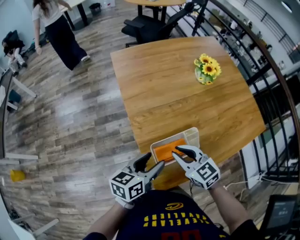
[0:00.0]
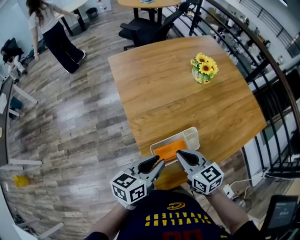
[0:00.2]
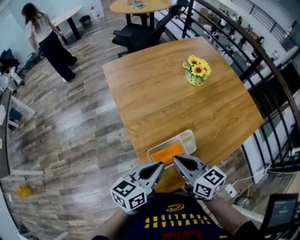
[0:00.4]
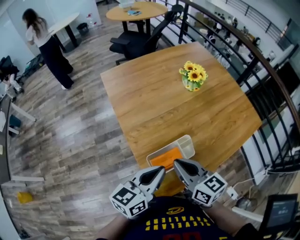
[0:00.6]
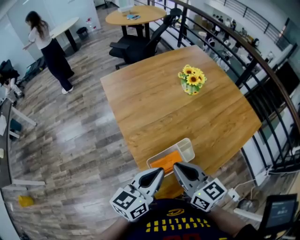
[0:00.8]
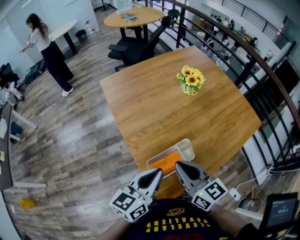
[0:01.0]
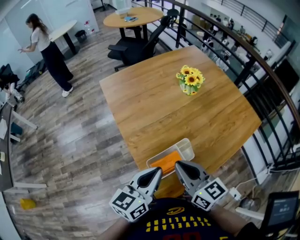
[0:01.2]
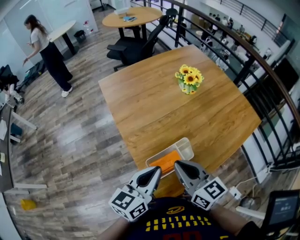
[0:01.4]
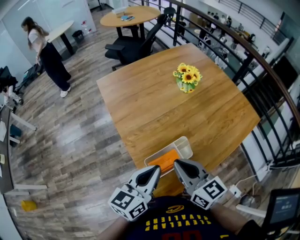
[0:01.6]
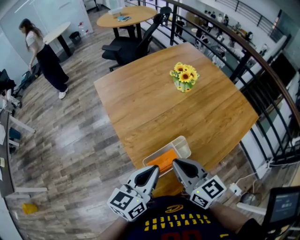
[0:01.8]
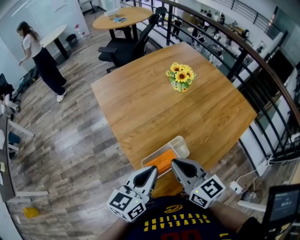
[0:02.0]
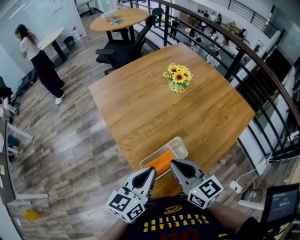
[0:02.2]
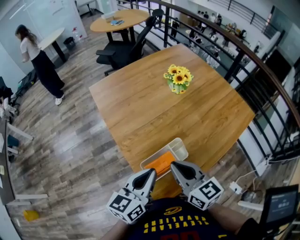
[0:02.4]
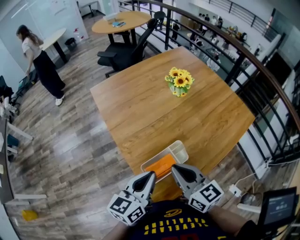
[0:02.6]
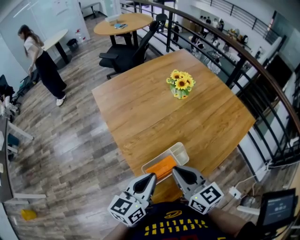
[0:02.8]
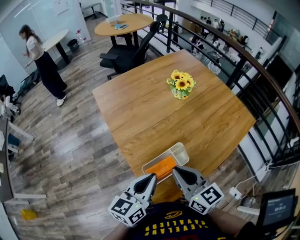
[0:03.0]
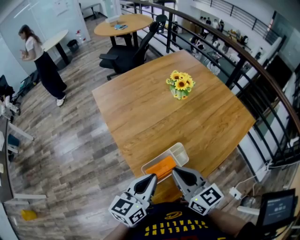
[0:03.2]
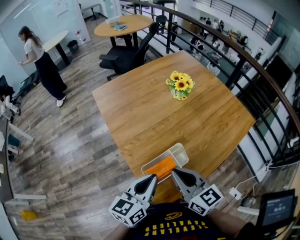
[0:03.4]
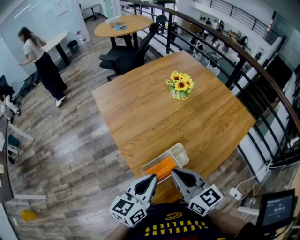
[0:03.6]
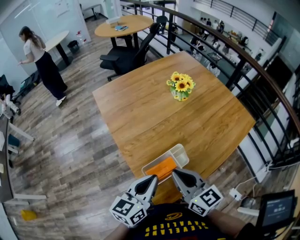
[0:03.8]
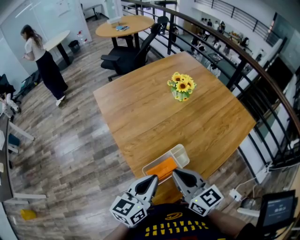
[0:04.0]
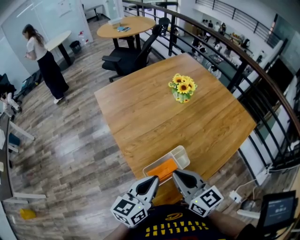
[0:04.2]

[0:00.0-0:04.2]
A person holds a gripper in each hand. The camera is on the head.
0.0 to 1.4 s: Both grippers move upward, approximately 10 cm. The right gripper swivels approximately 30 degrees. The left gripper closes its fingers.
1.4 to 2.8 s: There are only small adjustments of the grippers.
2.8 to 4.2 s: The two grippers keep their place.

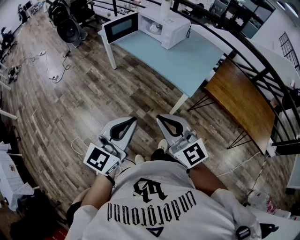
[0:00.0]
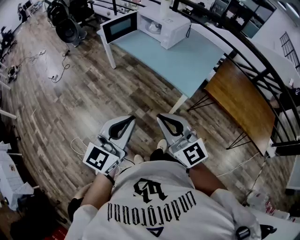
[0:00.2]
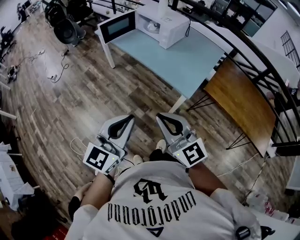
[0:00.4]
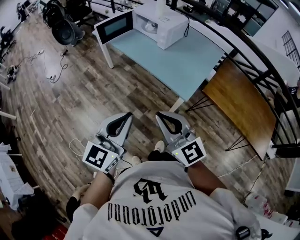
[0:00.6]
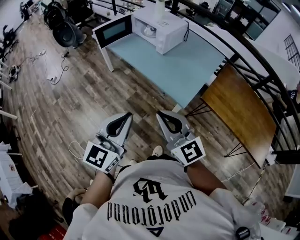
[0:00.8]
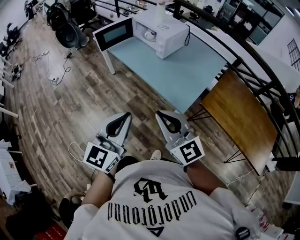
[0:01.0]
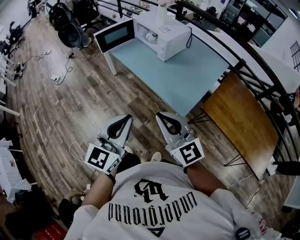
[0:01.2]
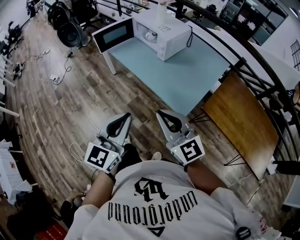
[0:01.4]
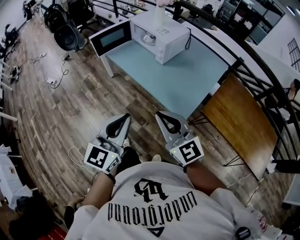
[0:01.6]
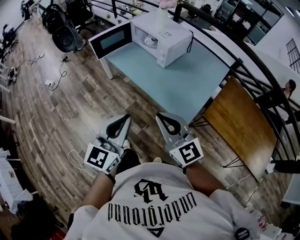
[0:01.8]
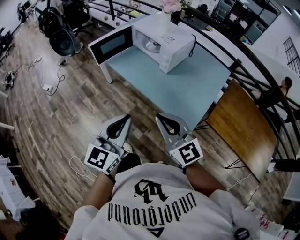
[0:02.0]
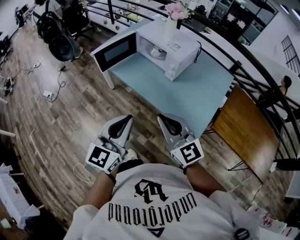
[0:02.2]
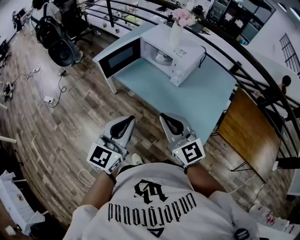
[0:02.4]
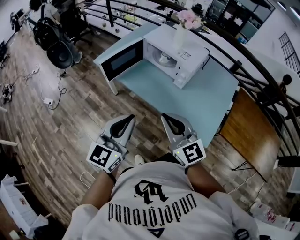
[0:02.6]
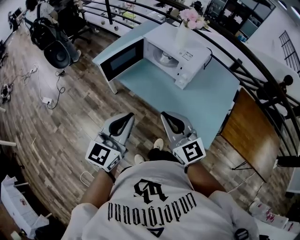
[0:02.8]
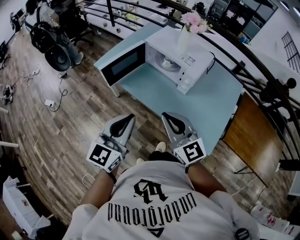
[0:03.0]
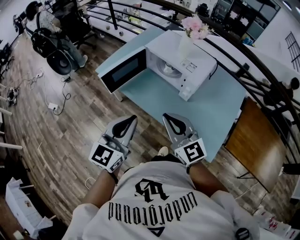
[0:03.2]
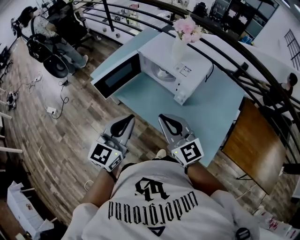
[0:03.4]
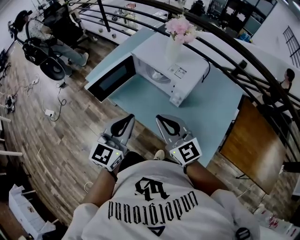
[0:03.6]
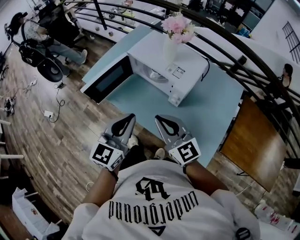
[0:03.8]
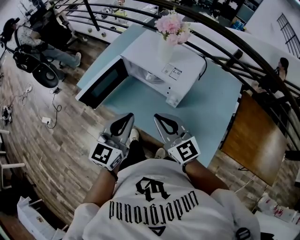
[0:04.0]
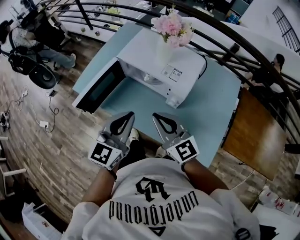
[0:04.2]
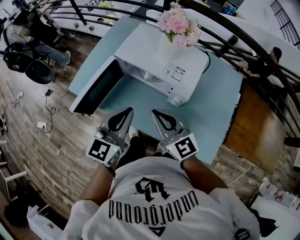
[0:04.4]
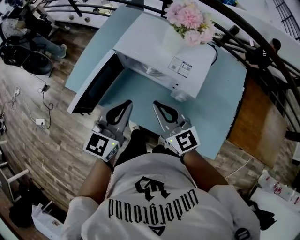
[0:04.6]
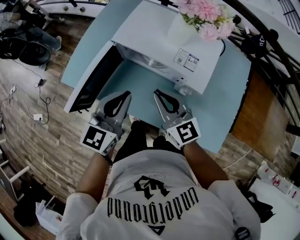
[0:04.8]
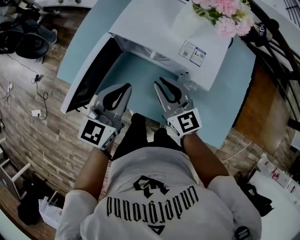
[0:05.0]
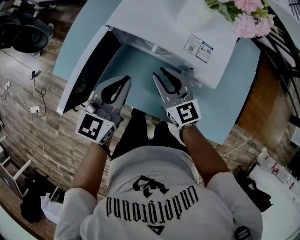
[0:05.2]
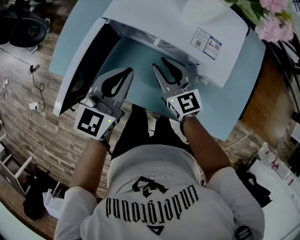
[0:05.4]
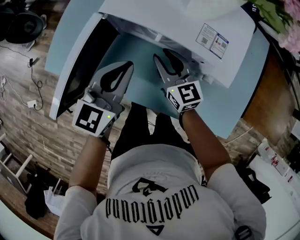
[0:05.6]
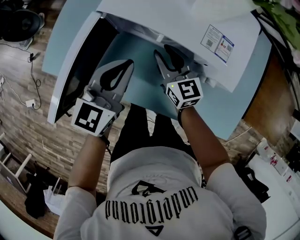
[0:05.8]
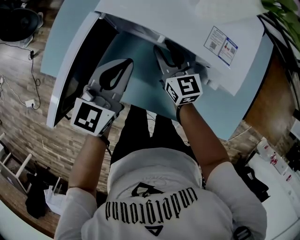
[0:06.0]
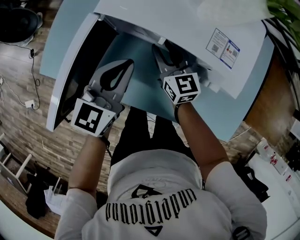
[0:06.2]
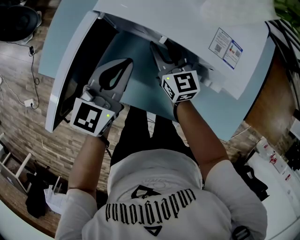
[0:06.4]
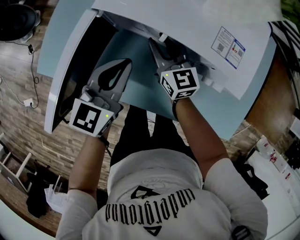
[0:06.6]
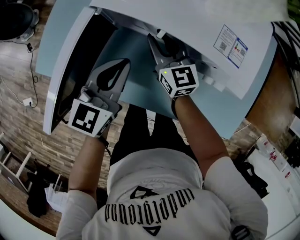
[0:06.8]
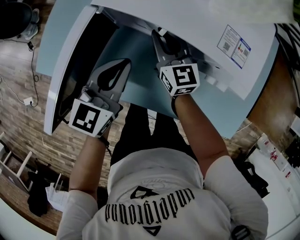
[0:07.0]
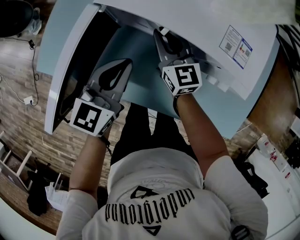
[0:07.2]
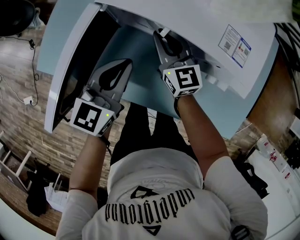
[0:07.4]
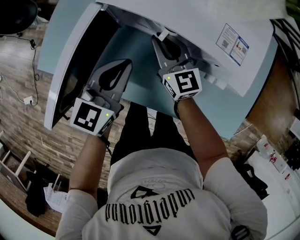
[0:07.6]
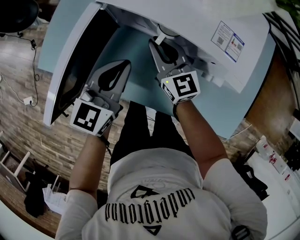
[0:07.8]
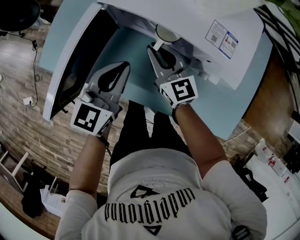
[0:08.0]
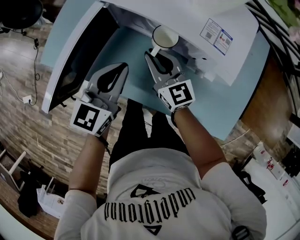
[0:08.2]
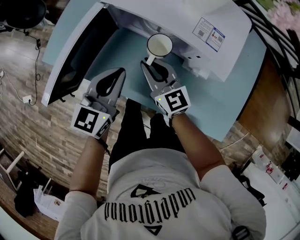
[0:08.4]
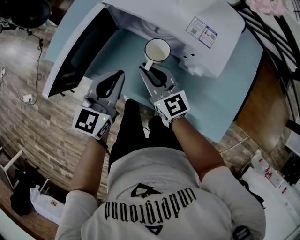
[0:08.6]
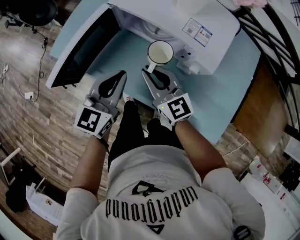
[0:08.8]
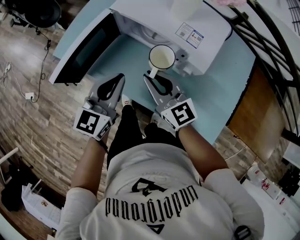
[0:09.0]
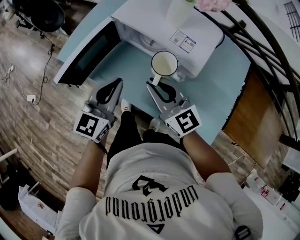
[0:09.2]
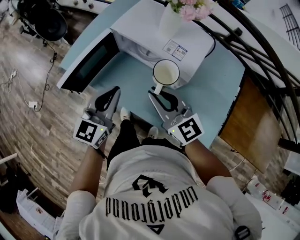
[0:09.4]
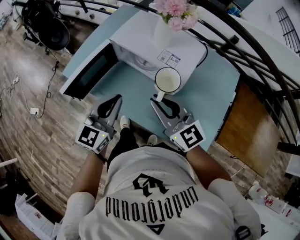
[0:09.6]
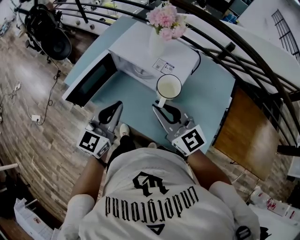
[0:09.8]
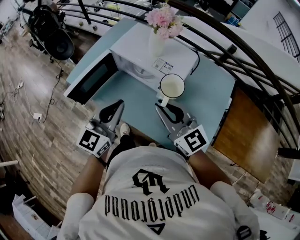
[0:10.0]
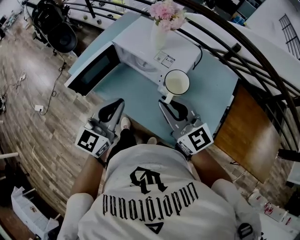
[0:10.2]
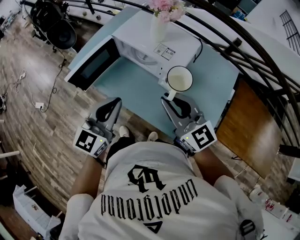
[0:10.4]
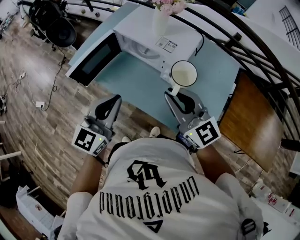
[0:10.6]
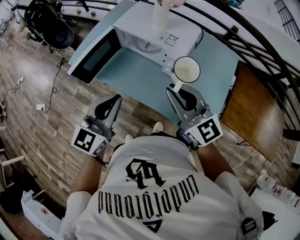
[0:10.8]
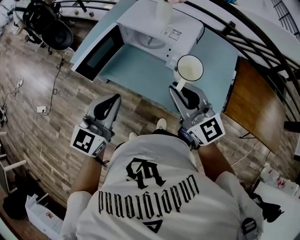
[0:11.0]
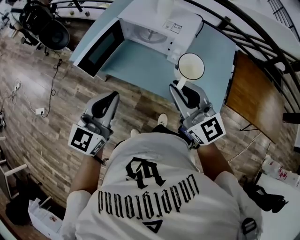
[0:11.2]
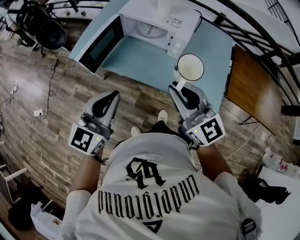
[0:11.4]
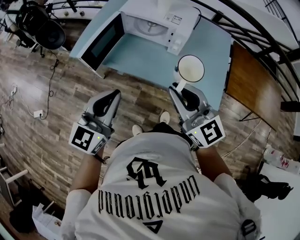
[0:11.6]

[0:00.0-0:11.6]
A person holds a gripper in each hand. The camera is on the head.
0.0 to 1.4 s: Both grippers move forward and to the right, roughly 20 cm.
1.4 to 2.8 s: Both grippers move forward and to the left, approximately 35 cm.
2.8 to 4.4 s: The grippers both shift forward by roughly 25 cm.
4.4 to 5.8 s: Both grippers travel together downward and forward, approximately 25 cm. The right gripper rotates about 20 degrees, and opens its fingers.
5.8 to 7.2 s: The left gripper heads downward, covering some 5 cm. The right gripper changes place by approximately 5 cm.
7.2 to 8.8 s: The right gripper is displaced backward and upward by roughly 20 cm. Meanwhile the left gripper goes about 15 cm backward and upward.
8.8 to 10.2 s: Both grippers travel together upward, backward and to the right, about 25 cm.
10.2 to 11.6 s: Both grippers travel together backward and to the left, some 25 cm.

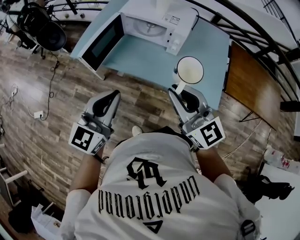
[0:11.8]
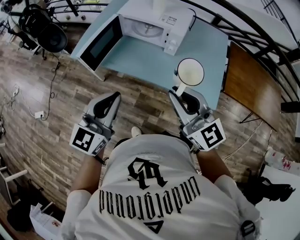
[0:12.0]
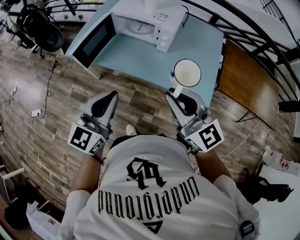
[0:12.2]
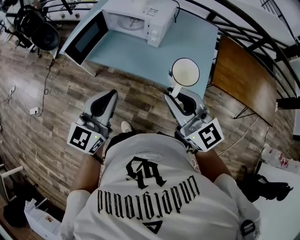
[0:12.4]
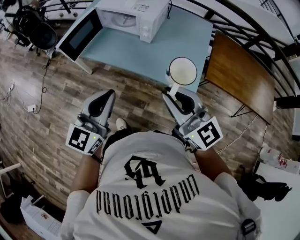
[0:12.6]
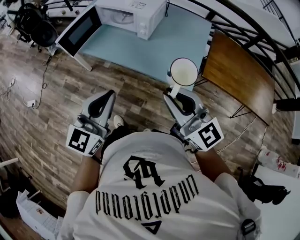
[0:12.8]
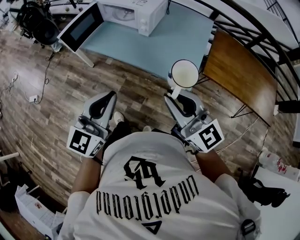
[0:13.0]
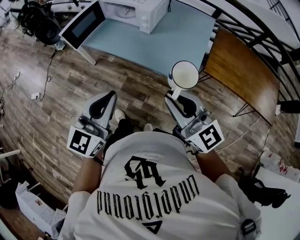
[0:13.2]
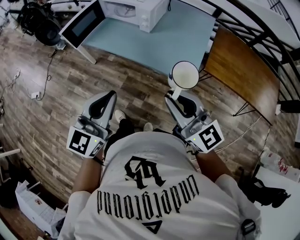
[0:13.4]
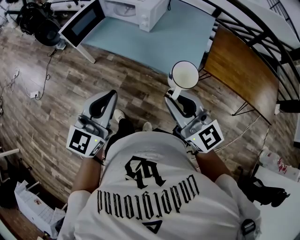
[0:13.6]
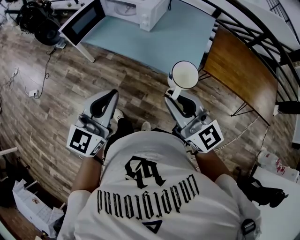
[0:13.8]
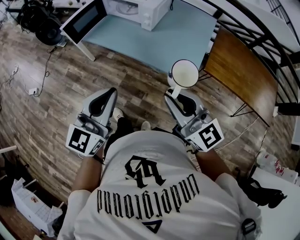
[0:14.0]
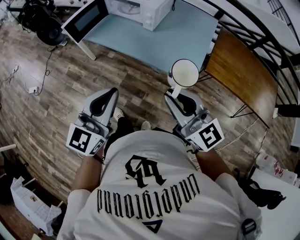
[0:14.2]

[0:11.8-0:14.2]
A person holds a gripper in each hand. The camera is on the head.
11.8 to 13.0 s: Both grippers travel together to the right and backward, approximately 25 cm.
13.0 to 14.2 s: The grippers stay close to where they were, moving slightly.

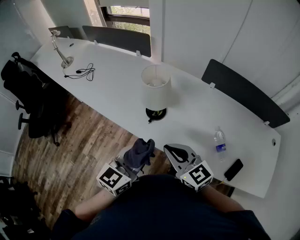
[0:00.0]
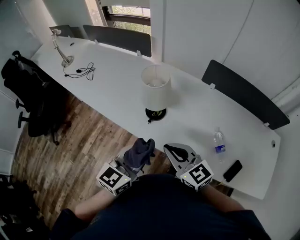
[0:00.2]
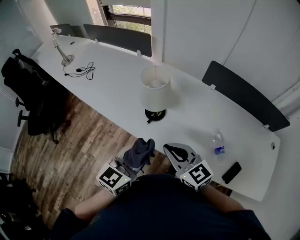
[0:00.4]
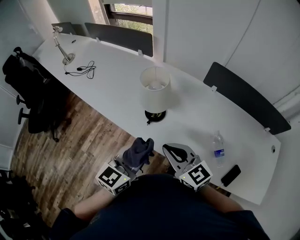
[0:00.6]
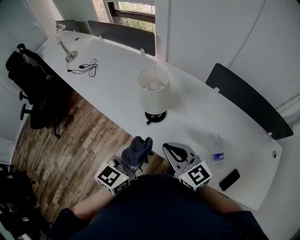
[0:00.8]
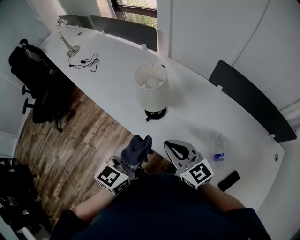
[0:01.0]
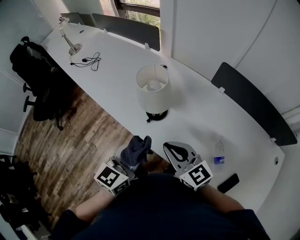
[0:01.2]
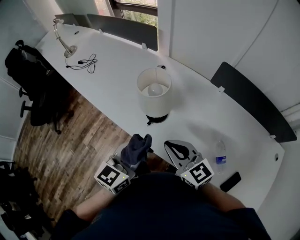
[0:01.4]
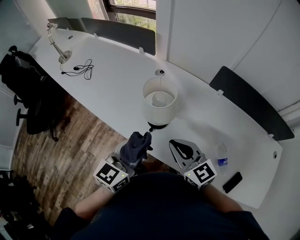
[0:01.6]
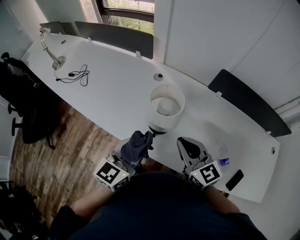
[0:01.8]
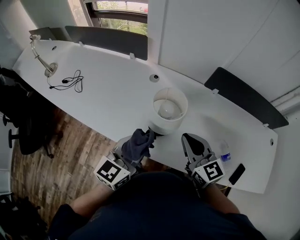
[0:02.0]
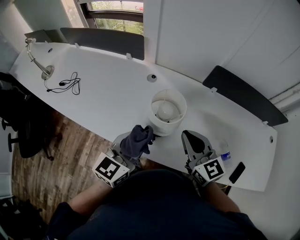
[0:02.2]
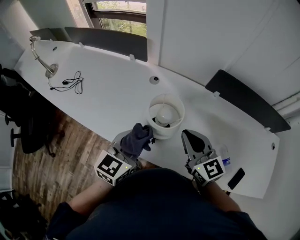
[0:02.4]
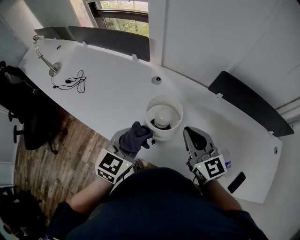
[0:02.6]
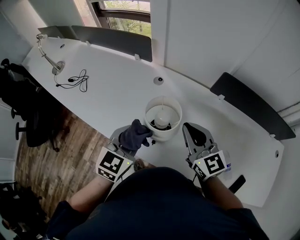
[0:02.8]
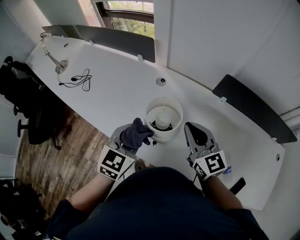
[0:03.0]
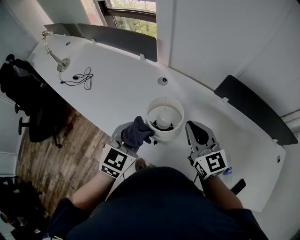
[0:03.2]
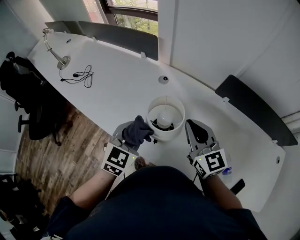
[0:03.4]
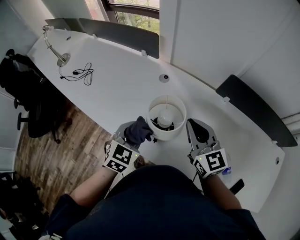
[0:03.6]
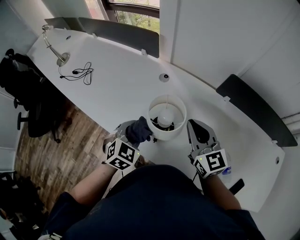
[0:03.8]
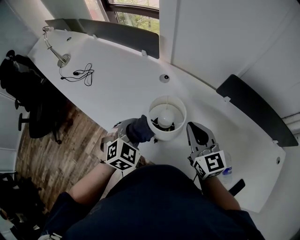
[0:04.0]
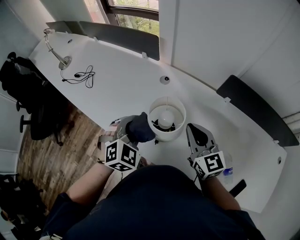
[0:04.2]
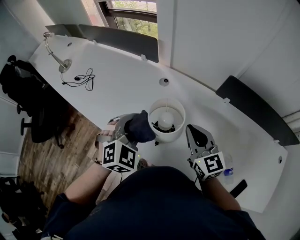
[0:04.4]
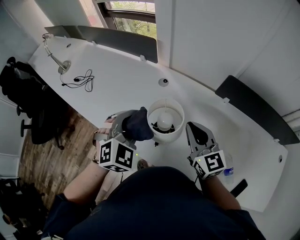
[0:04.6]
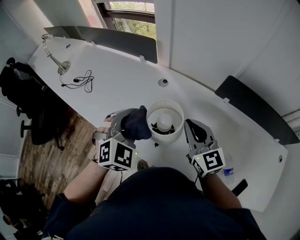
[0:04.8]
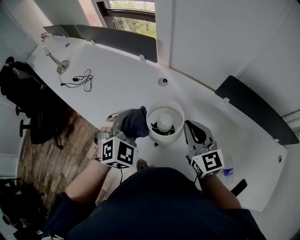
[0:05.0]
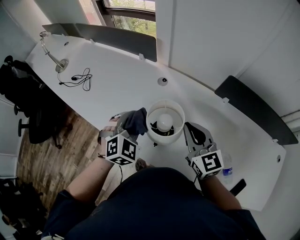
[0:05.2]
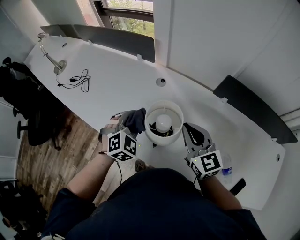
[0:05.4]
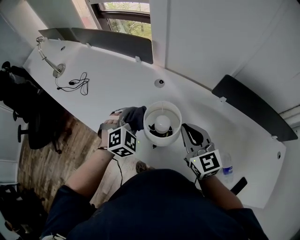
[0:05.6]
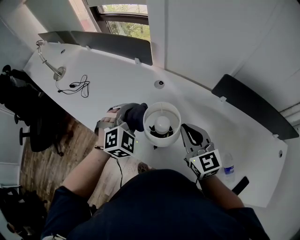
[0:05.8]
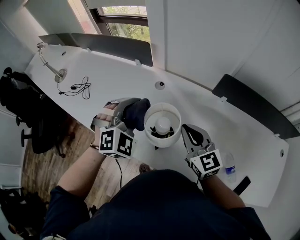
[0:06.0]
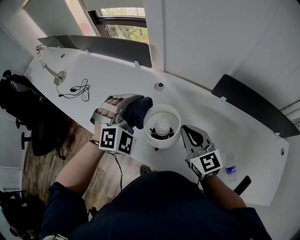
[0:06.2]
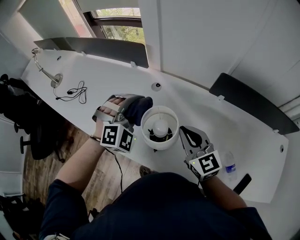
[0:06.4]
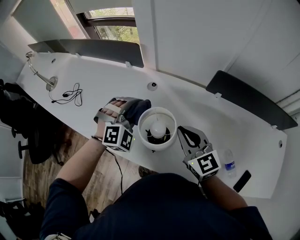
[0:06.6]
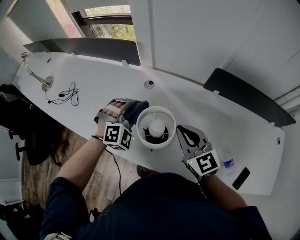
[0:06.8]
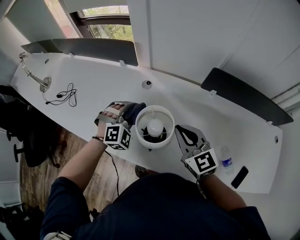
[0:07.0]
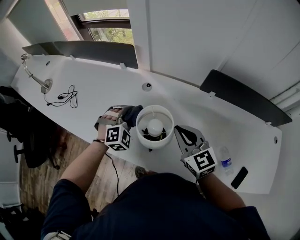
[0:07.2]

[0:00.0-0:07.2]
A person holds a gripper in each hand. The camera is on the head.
0.0 to 1.4 s: Both grippers move forward, approximately 5 cm.
1.4 to 2.8 s: The right gripper heads forward, covering about 15 cm, and rotates some 20 degrees; the left gripper goes roughly 15 cm forward and to the left, and changes its angle by approximately 20 degrees.
2.8 to 4.4 s: The left gripper reaches roughly 10 cm downward, then returns, and changes its angle by approximately 40 degrees.
4.4 to 5.8 s: The left gripper travels forward by approximately 5 cm, and travels downward and back again, roughly 5 cm each way.
5.8 to 7.2 s: The left gripper moves downward, roughly 10 cm.
